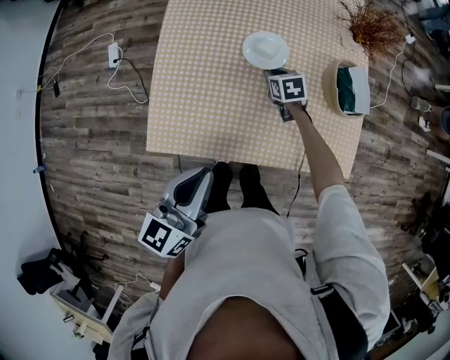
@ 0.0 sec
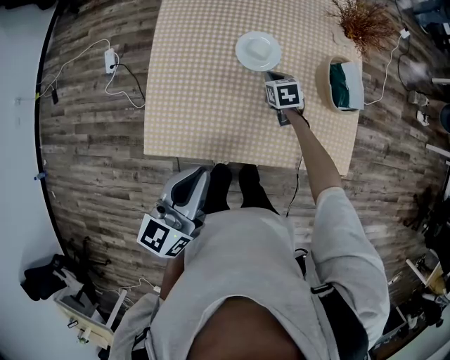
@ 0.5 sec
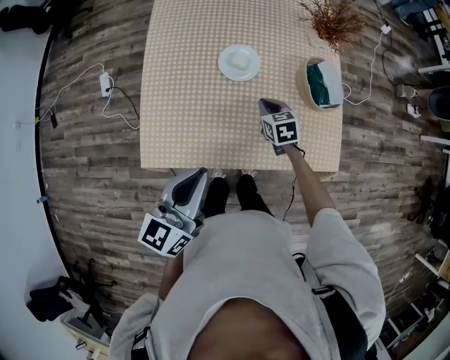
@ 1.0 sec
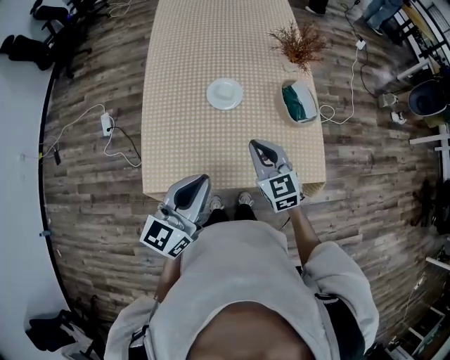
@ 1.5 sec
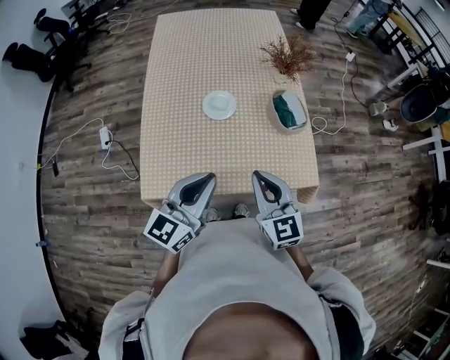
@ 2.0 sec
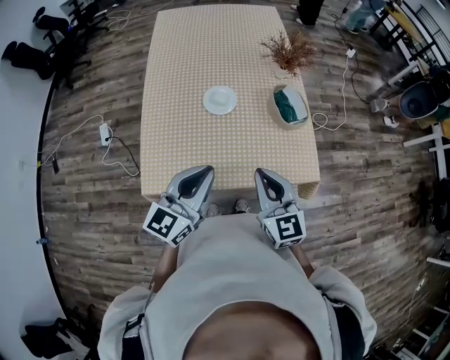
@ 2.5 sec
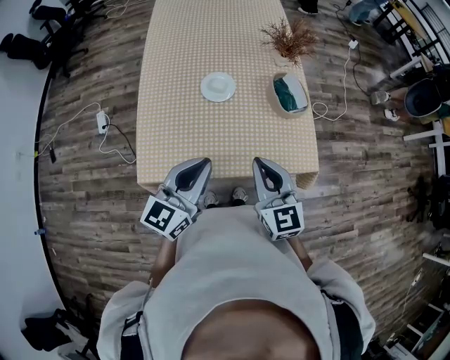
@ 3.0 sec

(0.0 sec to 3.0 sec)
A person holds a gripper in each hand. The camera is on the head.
0.0 sec - 1.5 sec: The left gripper ends up approximately 10 cm from where it was.

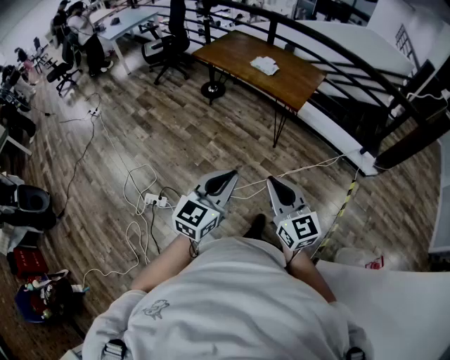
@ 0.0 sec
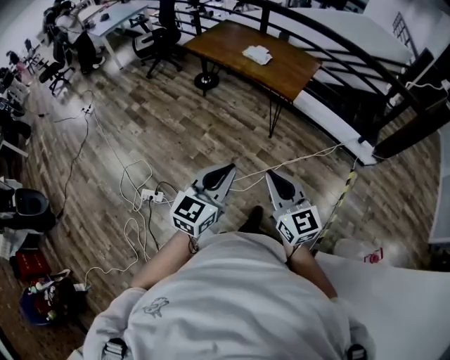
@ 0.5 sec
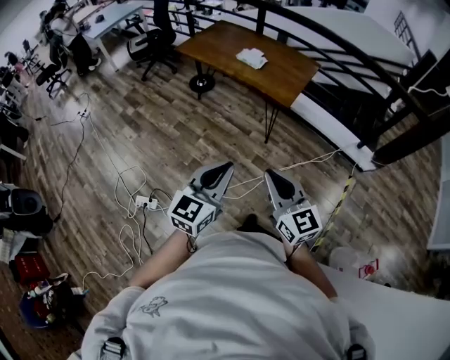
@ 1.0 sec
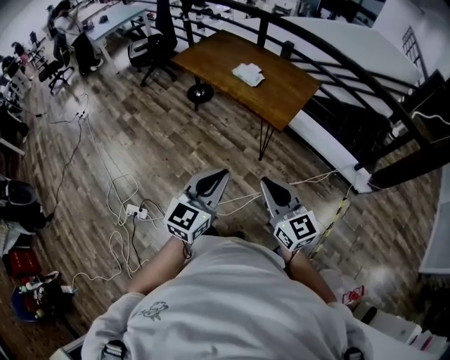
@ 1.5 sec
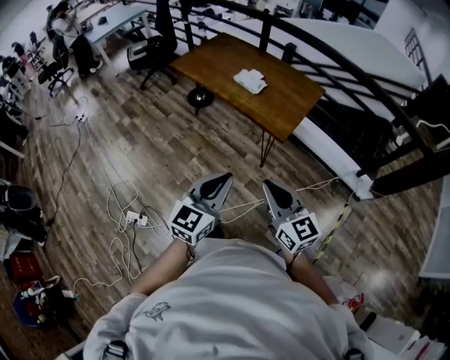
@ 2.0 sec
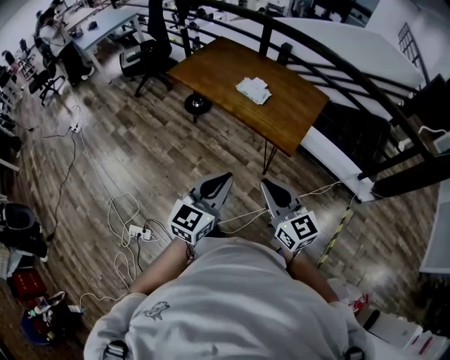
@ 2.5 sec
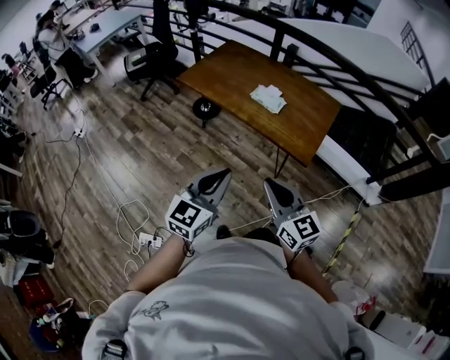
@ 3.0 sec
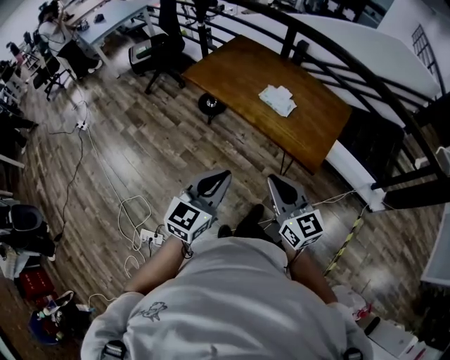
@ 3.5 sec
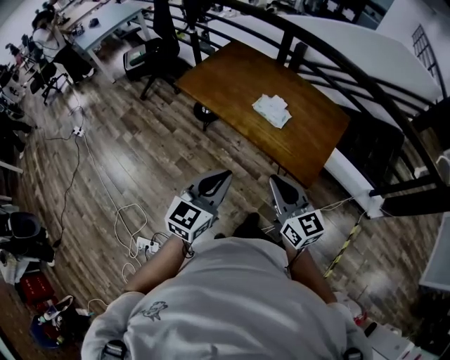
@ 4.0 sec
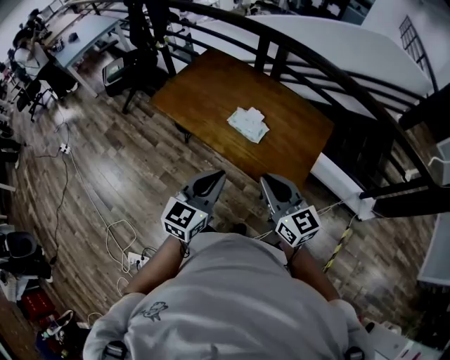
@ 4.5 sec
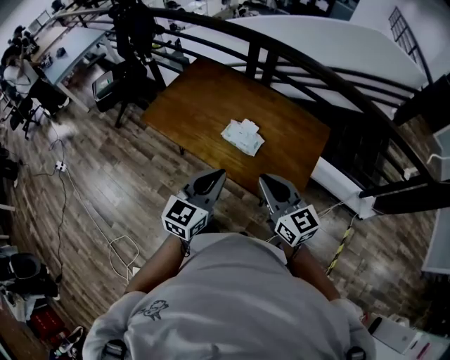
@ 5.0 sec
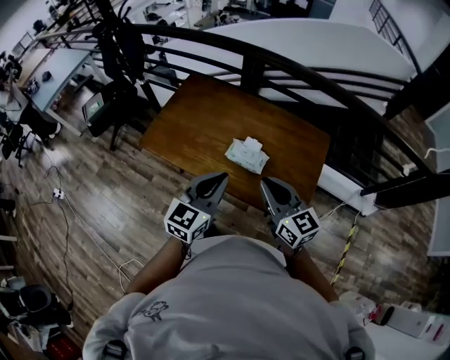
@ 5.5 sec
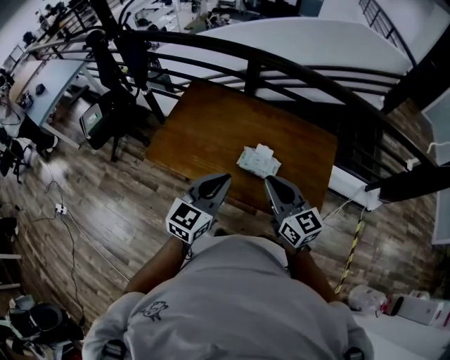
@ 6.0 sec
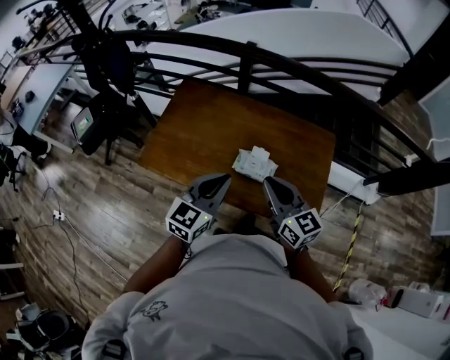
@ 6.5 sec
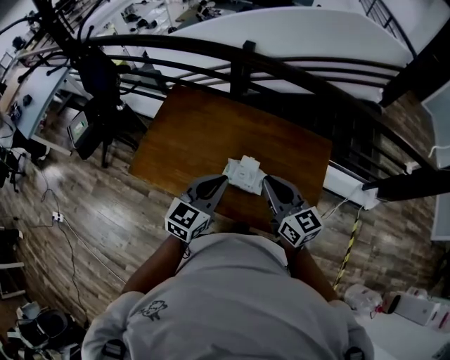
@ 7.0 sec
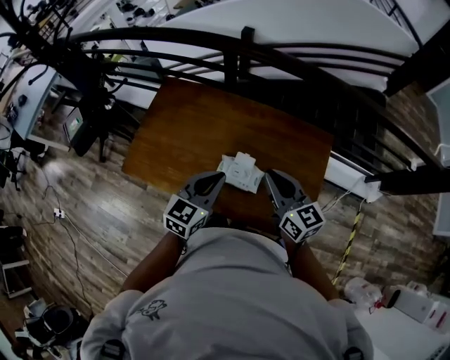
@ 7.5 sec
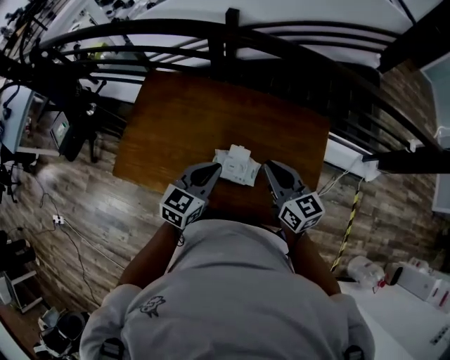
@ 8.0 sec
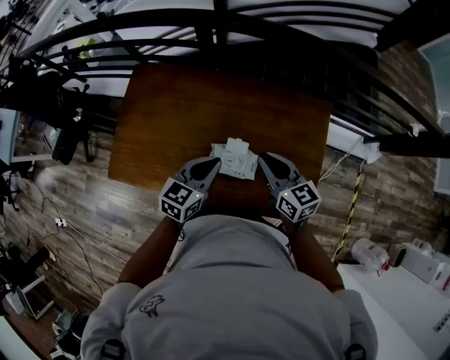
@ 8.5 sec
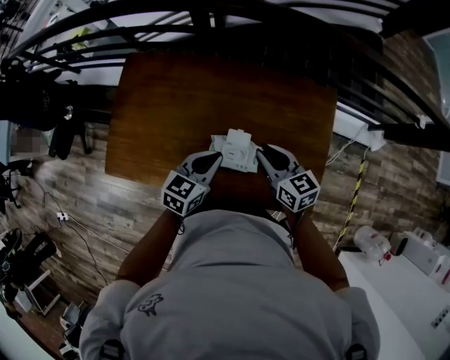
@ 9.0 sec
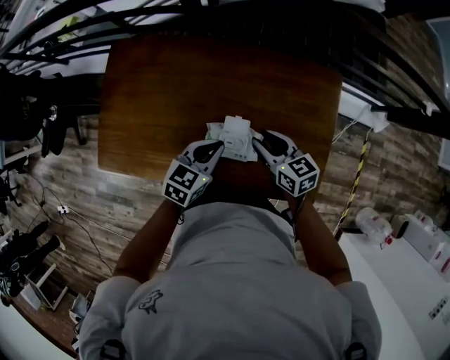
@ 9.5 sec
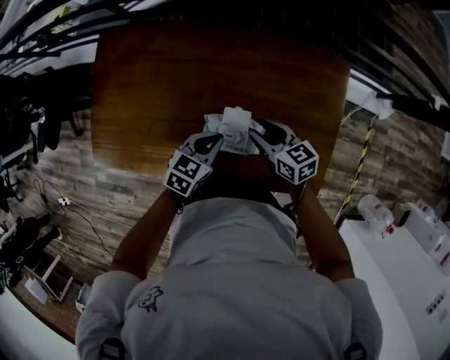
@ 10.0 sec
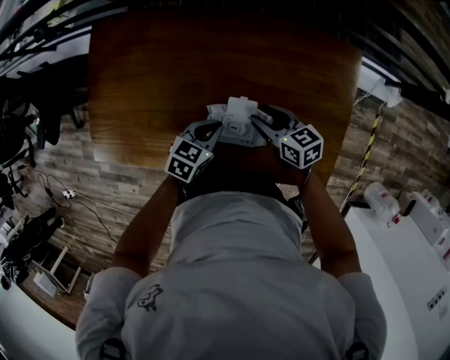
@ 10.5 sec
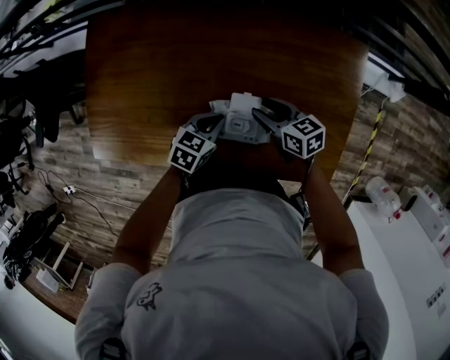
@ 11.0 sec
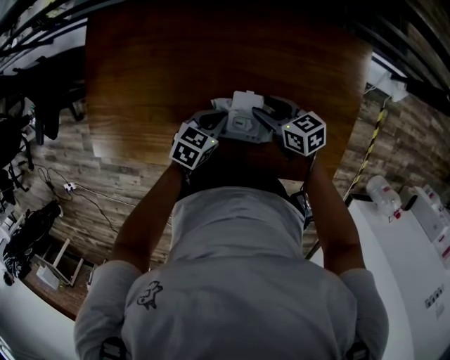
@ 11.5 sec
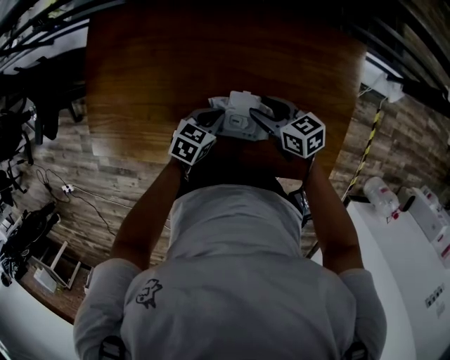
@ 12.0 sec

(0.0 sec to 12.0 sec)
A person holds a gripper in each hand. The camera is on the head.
0.0 sec - 2.0 sec: The grippers both shift forward and to the right by approximately 30 cm.
2.0 sec - 4.0 sec: The right gripper moves forward, about 30 cm, while the left gripper moves forward and to the left, approximately 30 cm.
4.0 sec - 6.0 sec: The grippers both shift forward by about 30 cm.
6.0 sec - 8.0 sec: The left gripper goes some 25 cm forward, downward and to the right. Meanwhile the right gripper travels forward, to the right and downward by approximately 25 cm.
8.0 sec - 10.0 sec: Both grippers travel together downward, roughly 20 cm. The right gripper rotates about 20 degrees, and opens up. Meanwhile the left gripper changes its angle by approximately 20 degrees.
10.0 sec - 12.0 sec: The right gripper moves downward, approximately 5 cm; the left gripper moves downward, roughly 10 cm.

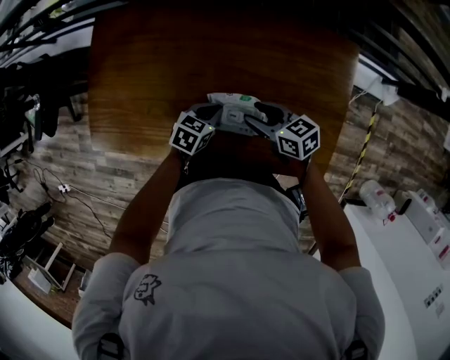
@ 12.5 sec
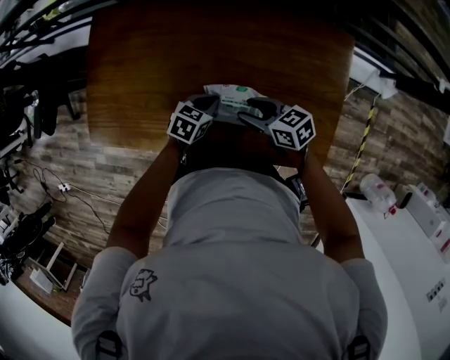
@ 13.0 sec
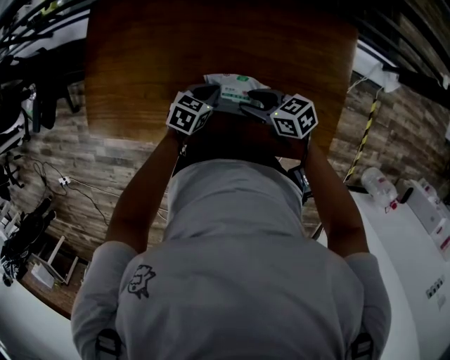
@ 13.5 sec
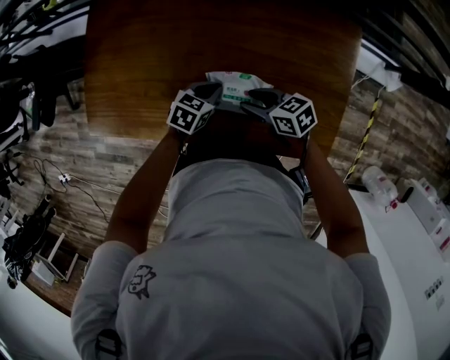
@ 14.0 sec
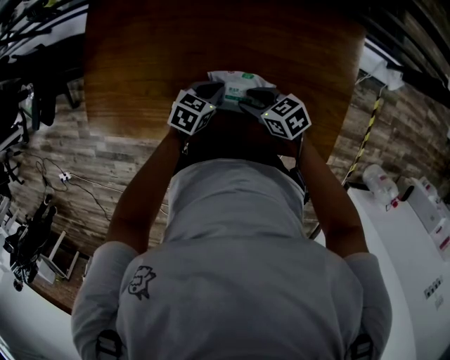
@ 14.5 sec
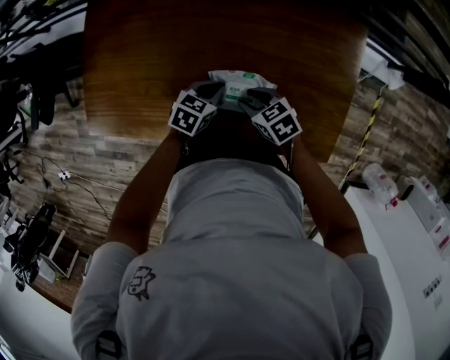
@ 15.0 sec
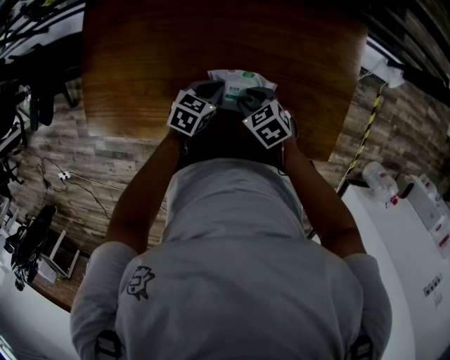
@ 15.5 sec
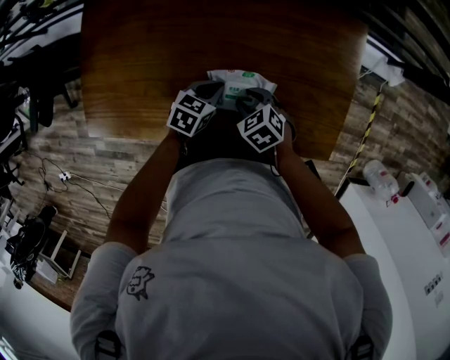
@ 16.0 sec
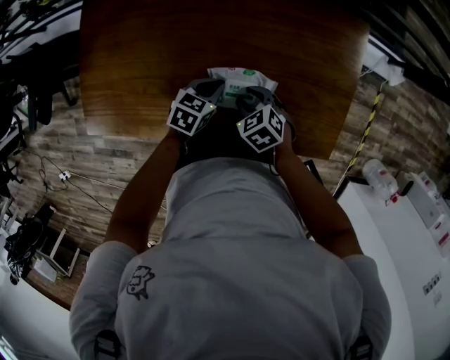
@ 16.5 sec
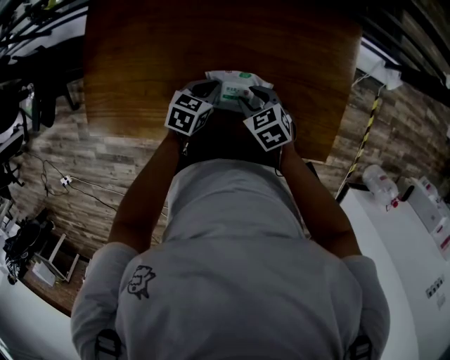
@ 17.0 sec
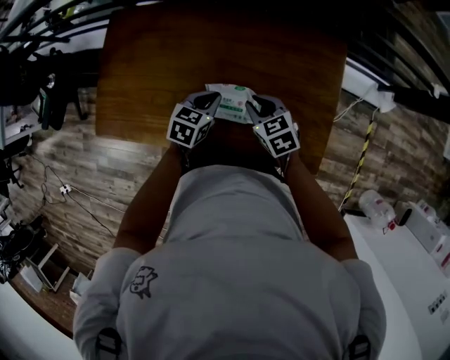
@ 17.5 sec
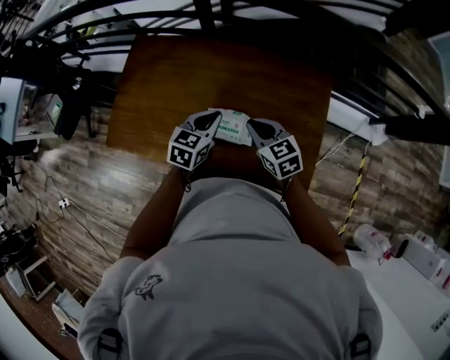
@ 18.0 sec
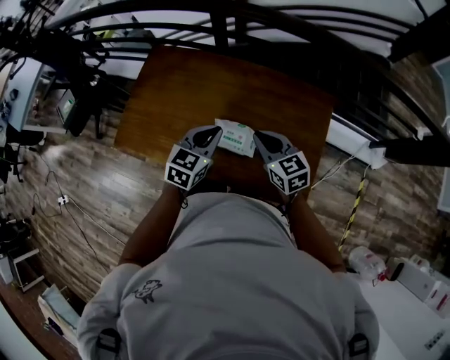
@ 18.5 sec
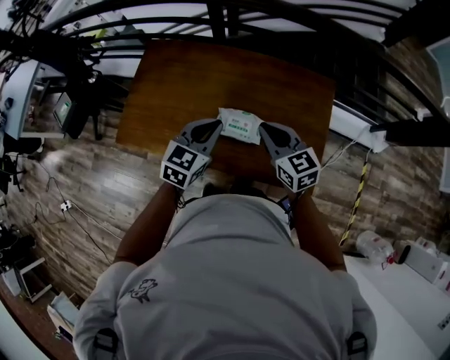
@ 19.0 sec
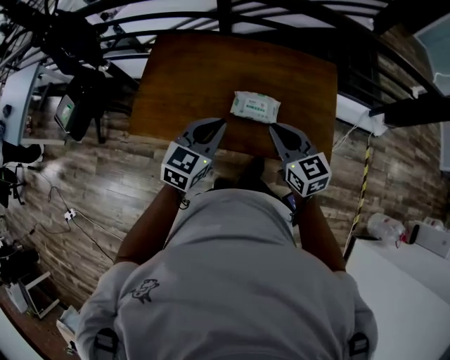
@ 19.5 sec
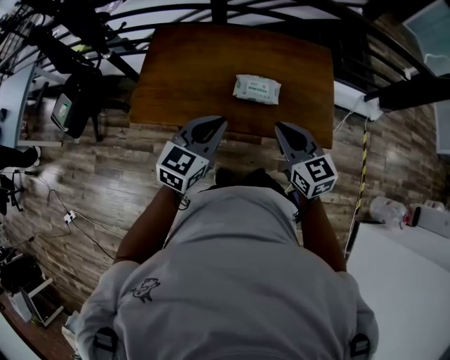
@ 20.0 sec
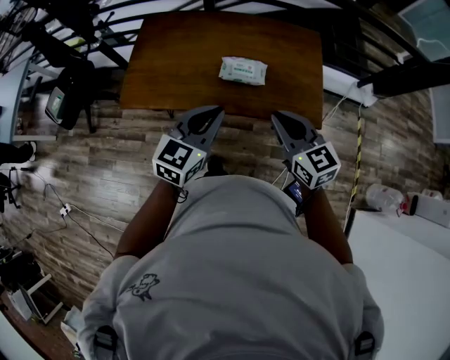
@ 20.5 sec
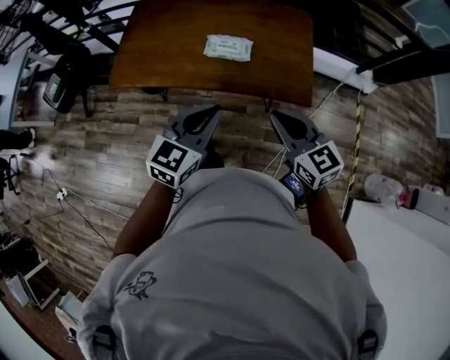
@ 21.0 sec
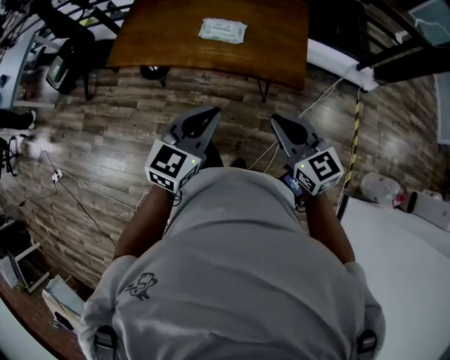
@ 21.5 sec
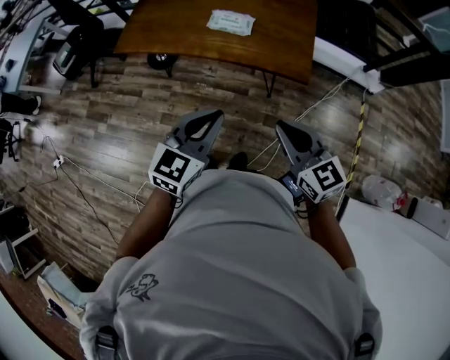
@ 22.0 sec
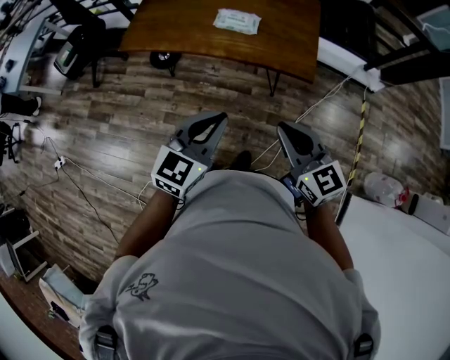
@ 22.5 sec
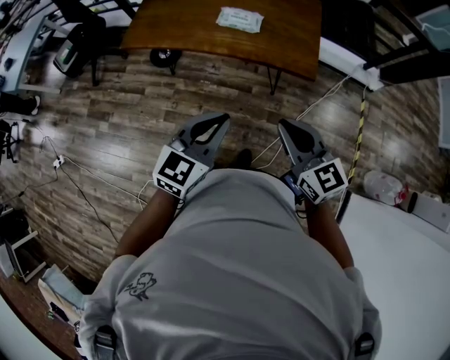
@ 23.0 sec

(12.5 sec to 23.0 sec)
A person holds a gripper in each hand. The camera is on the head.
12.5 sec - 14.5 sec: The right gripper shifts by roughly 5 cm.
14.5 sec - 16.5 sec: The right gripper swivels some 30 degrees.
16.5 sec - 19.0 sec: Both grippers travel together upward, approximately 30 cm. The left gripper changes its angle by approximately 30 degrees. The right gripper angles its fingers upward, by roughly 40 degrees, and closes its fingers.
19.0 sec - 21.0 sec: The two grippers go about 35 cm backward.
21.0 sec - 23.0 sec: The two grippers go roughly 20 cm backward.

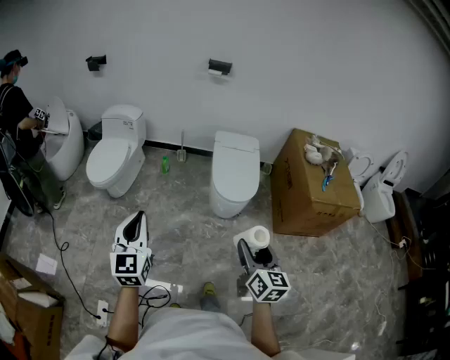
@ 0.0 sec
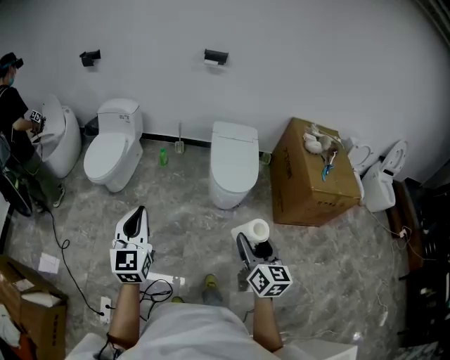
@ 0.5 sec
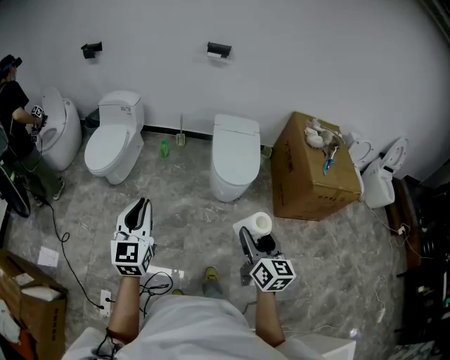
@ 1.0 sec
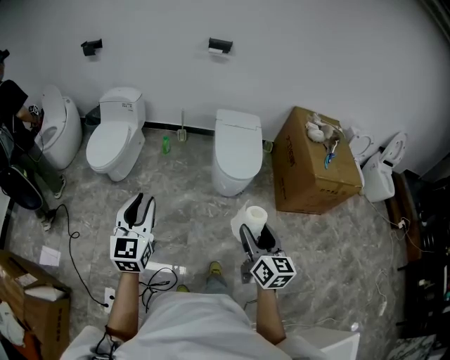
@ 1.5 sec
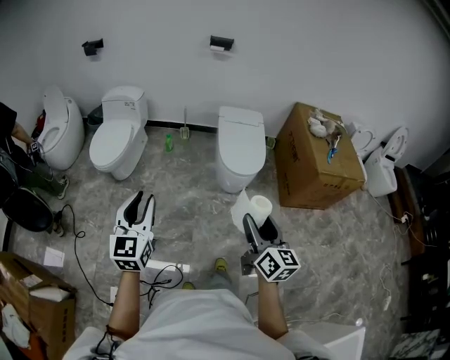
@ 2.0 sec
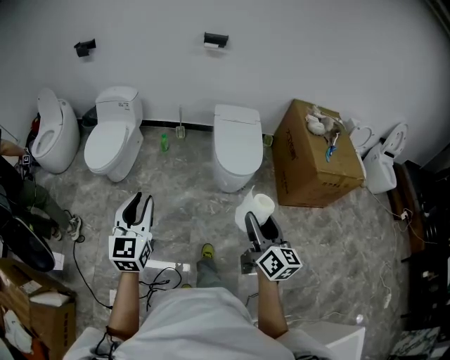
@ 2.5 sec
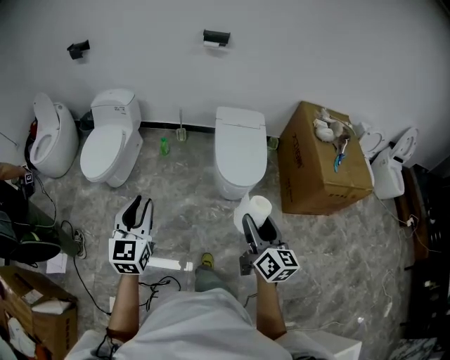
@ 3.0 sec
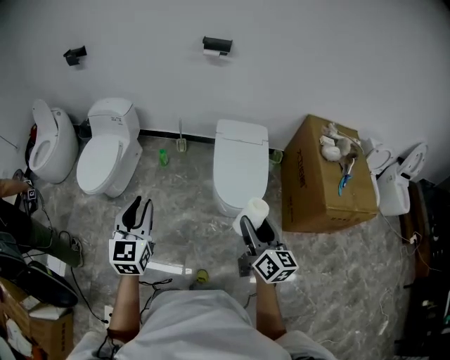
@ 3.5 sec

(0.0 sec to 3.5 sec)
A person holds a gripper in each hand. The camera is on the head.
0.0 sec - 2.0 sec: The right gripper goes approximately 5 cm to the left. The left gripper shifts by about 5 cm, and opens its fingers.
2.0 sec - 3.5 sec: The two grippers go some 30 cm forward.
